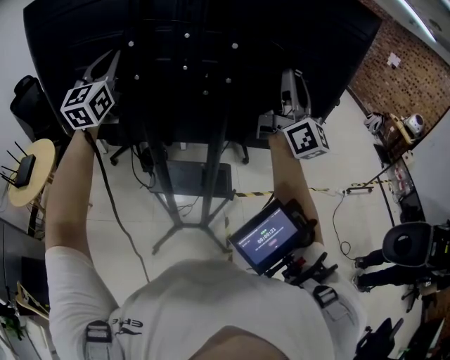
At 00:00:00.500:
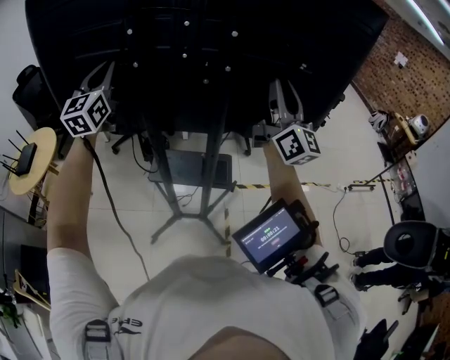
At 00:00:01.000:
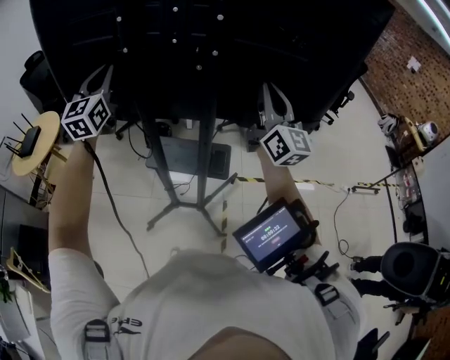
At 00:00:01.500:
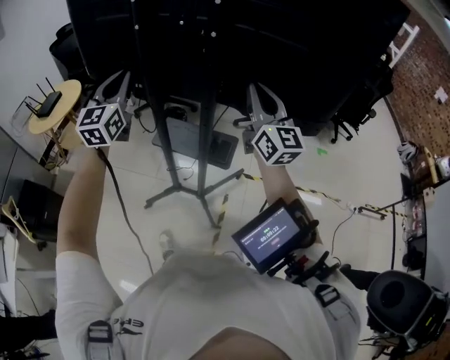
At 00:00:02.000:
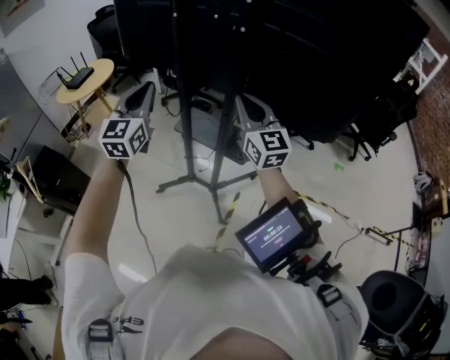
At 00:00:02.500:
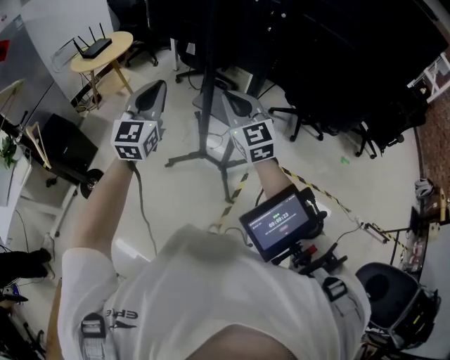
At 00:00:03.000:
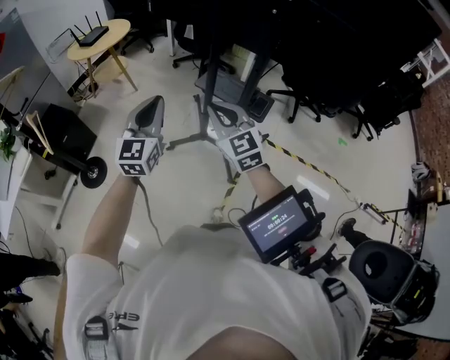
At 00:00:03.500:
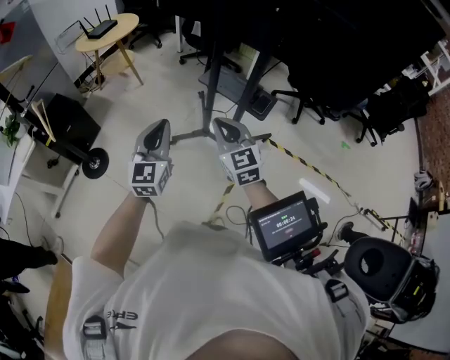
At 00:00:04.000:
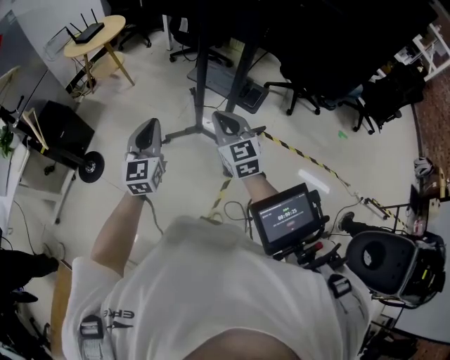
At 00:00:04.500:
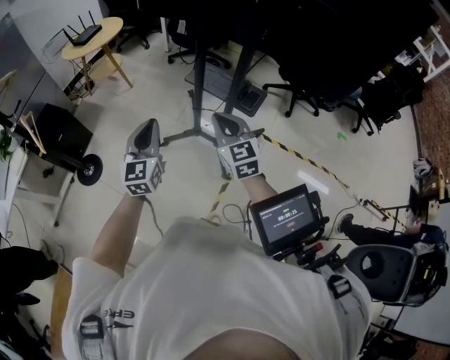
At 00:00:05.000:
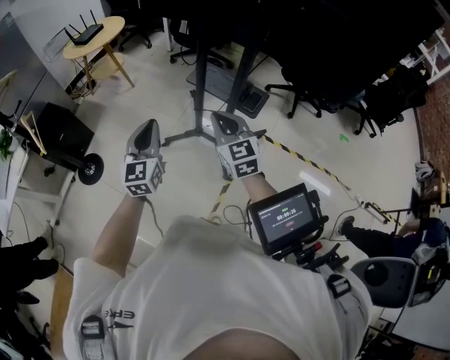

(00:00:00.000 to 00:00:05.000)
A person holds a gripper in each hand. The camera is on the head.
00:00:00.000 - 00:00:02.500: The left gripper ends up roughly 40 cm from where it was, and changes its angle by about 30 degrees; the right gripper moves some 35 cm, tips its fingers downward by some 50 degrees, and closes.
00:00:02.500 - 00:00:05.000: Both grippers travel together downward and backward, roughly 20 cm.

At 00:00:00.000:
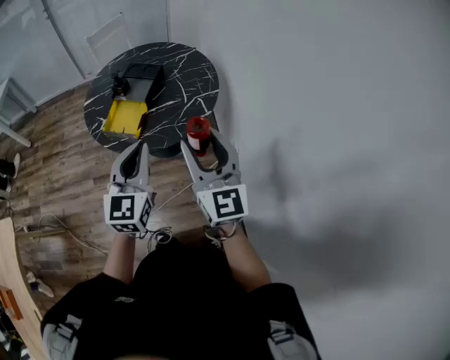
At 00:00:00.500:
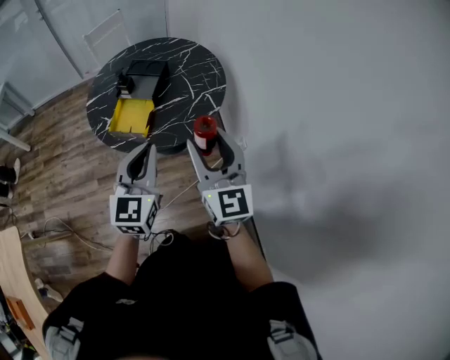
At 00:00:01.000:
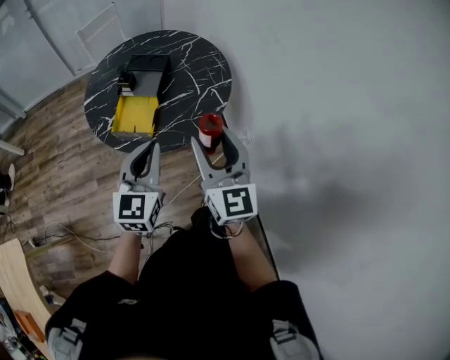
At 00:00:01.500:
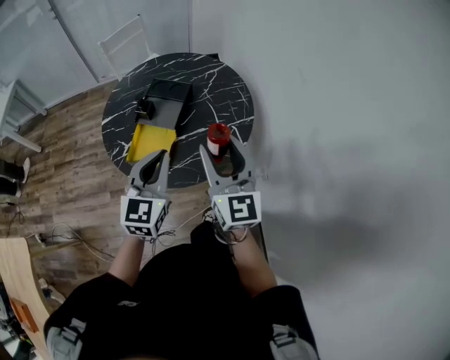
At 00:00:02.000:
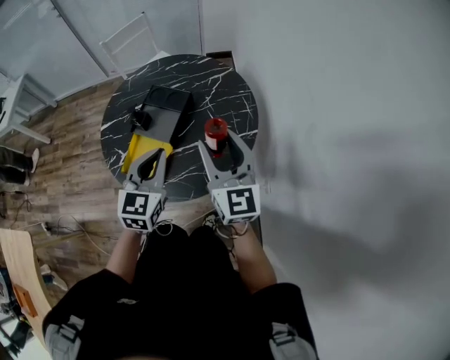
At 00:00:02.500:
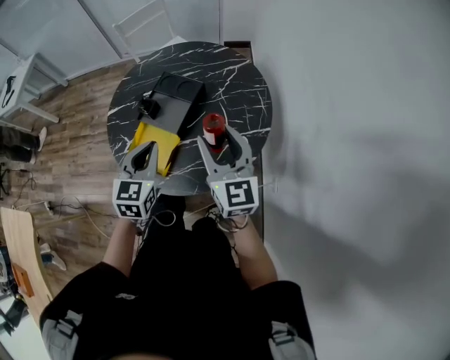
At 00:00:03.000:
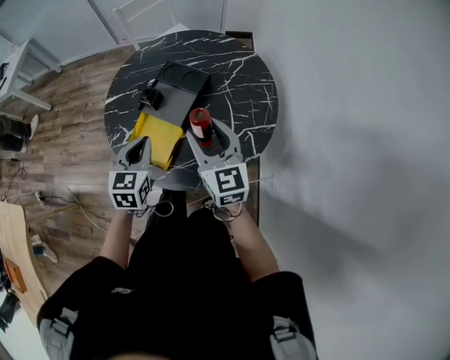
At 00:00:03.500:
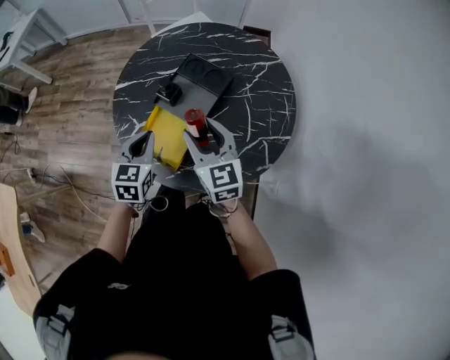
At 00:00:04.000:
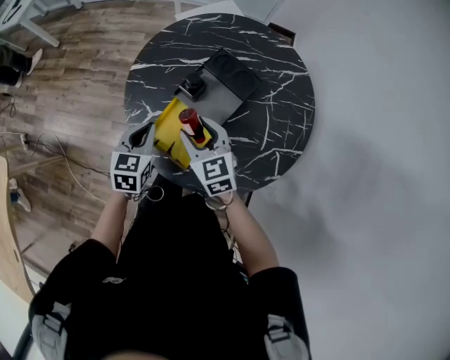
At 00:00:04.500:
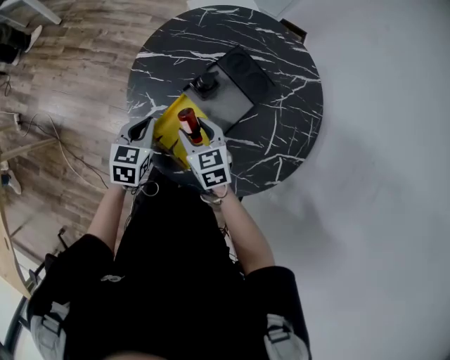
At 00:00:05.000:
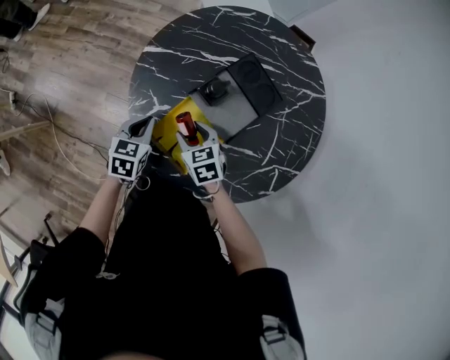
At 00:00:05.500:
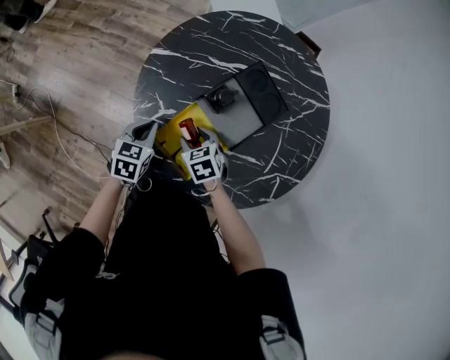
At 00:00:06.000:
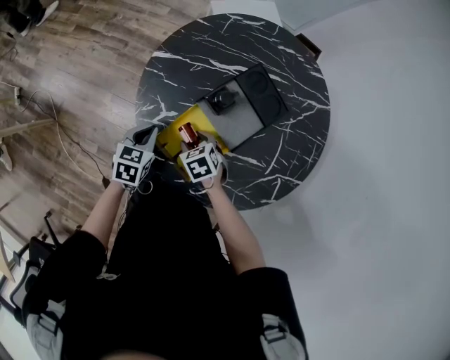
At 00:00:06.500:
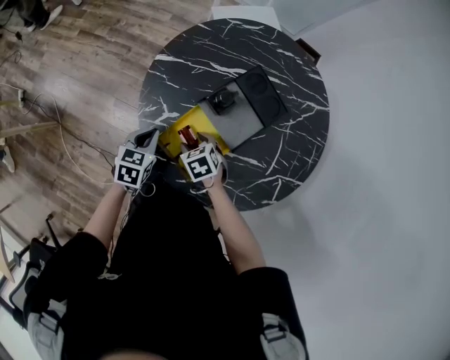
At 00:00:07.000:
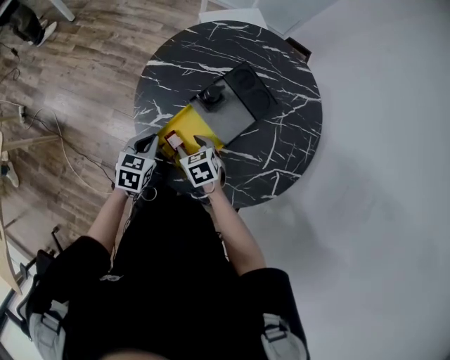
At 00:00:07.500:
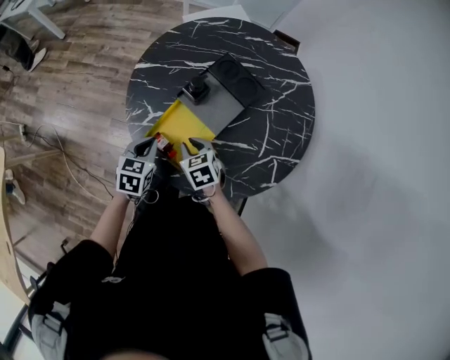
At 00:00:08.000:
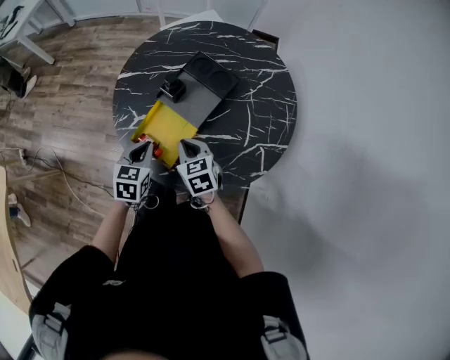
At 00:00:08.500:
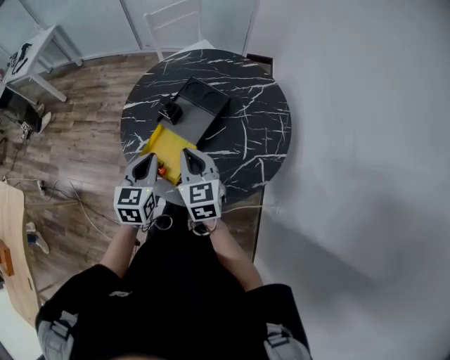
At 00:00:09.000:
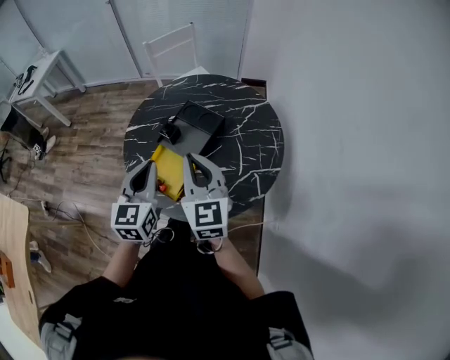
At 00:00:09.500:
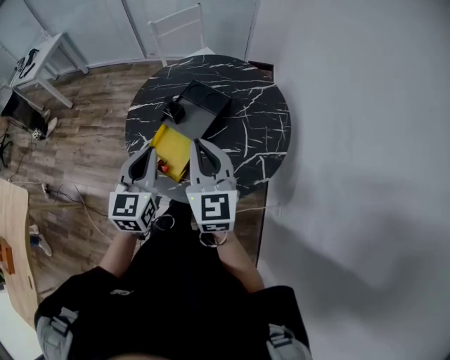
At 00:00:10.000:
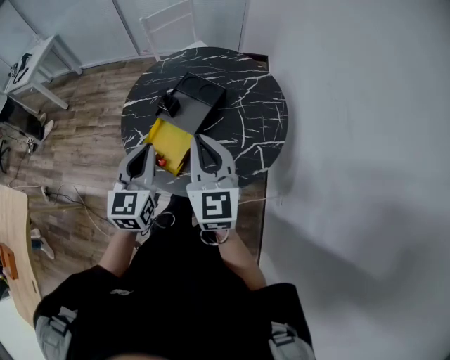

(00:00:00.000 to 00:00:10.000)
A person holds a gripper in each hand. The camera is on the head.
00:00:00.000 - 00:00:02.000: Both grippers move forward, about 30 cm.
00:00:02.000 - 00:00:04.000: Both grippers travel together to the left, downward and forward, approximately 35 cm. The right gripper points its fingers approximately 30 degrees further downward, while the left gripper turns by approximately 30 degrees.
00:00:04.000 - 00:00:06.000: The left gripper shifts approximately 10 cm downward and to the left. The right gripper travels downward by approximately 20 cm, and tilts its fingers about 40 degrees downward.
00:00:06.000 - 00:00:08.000: The left gripper moves backward, to the right and upward, approximately 15 cm, while the right gripper travels upward, to the right and backward by some 15 cm, rotates approximately 30 degrees, and closes its fingers.
00:00:08.000 - 00:00:10.000: The two grippers go approximately 25 cm upward. The left gripper swivels some 30 degrees; the right gripper points its fingers roughly 40 degrees further upward.

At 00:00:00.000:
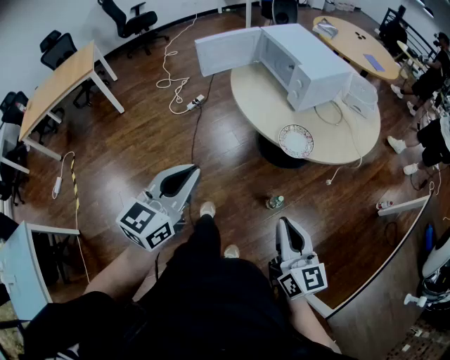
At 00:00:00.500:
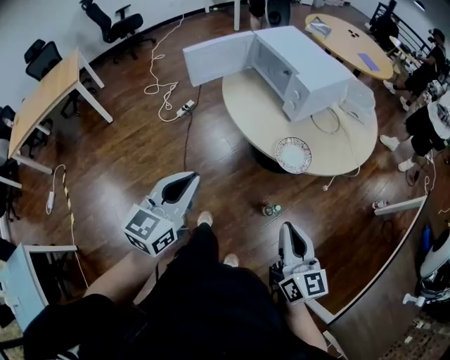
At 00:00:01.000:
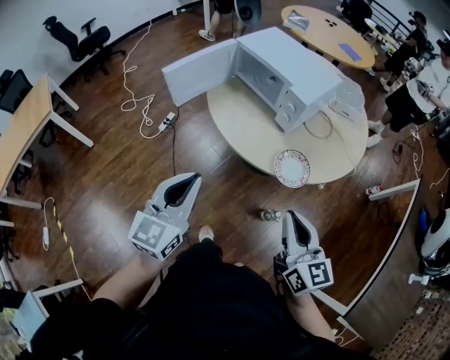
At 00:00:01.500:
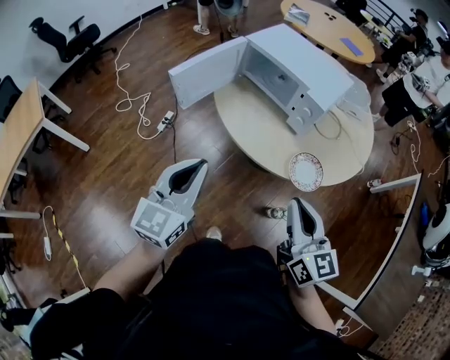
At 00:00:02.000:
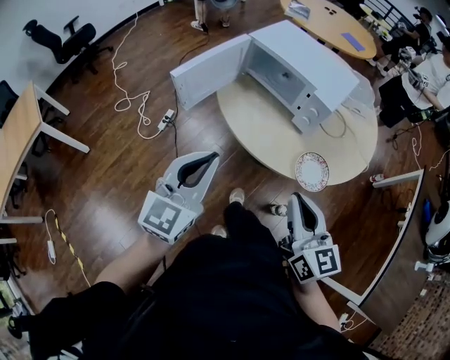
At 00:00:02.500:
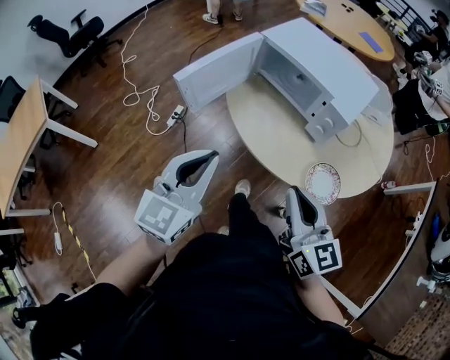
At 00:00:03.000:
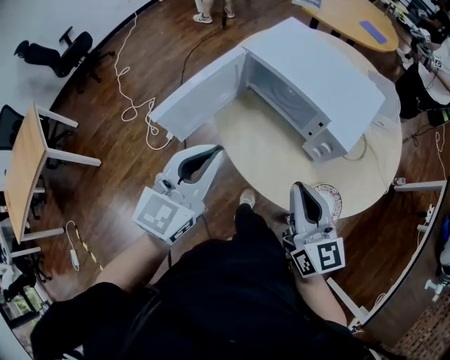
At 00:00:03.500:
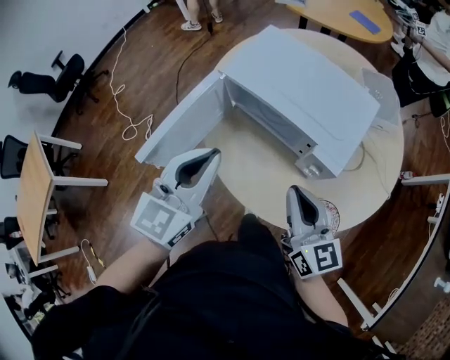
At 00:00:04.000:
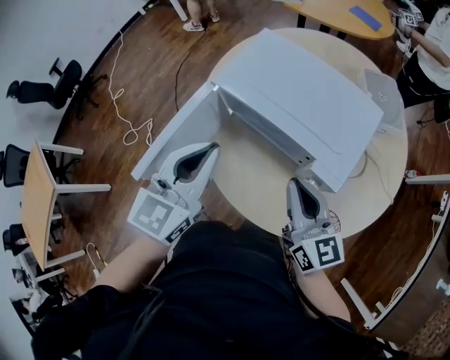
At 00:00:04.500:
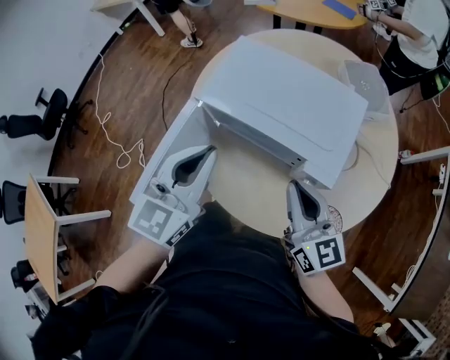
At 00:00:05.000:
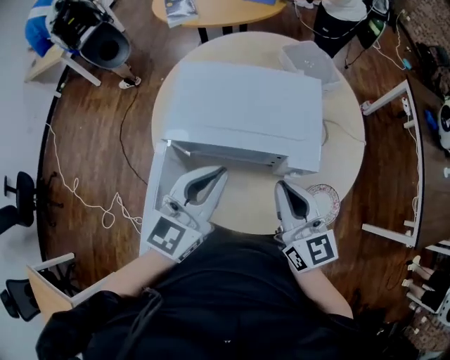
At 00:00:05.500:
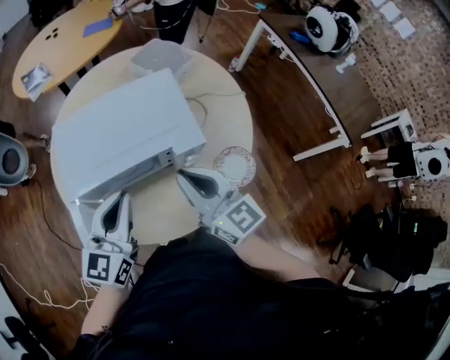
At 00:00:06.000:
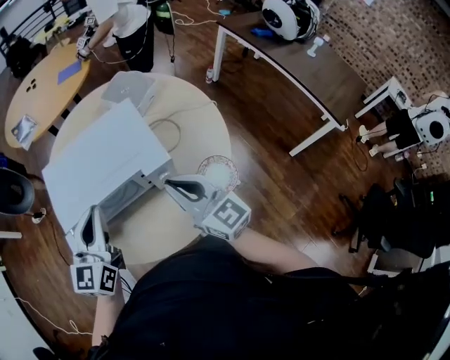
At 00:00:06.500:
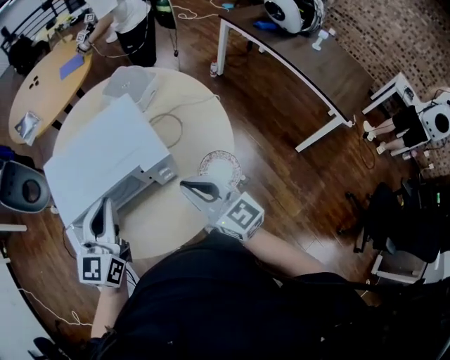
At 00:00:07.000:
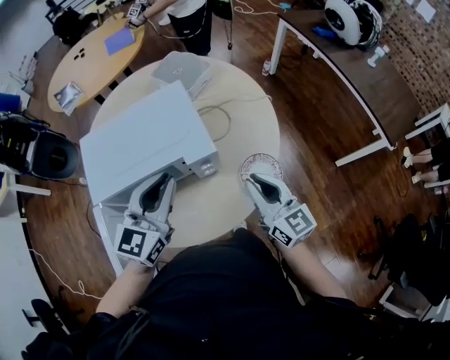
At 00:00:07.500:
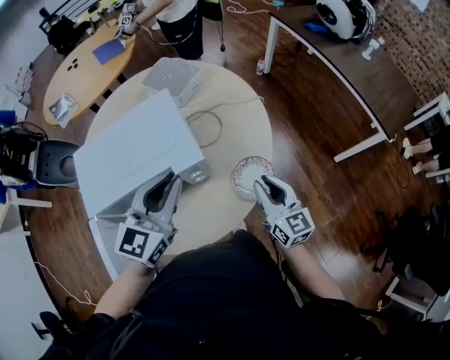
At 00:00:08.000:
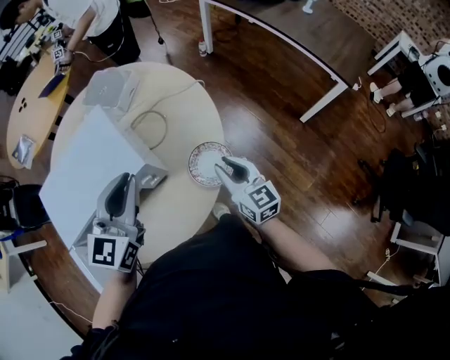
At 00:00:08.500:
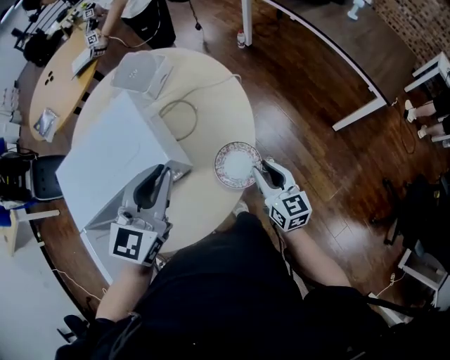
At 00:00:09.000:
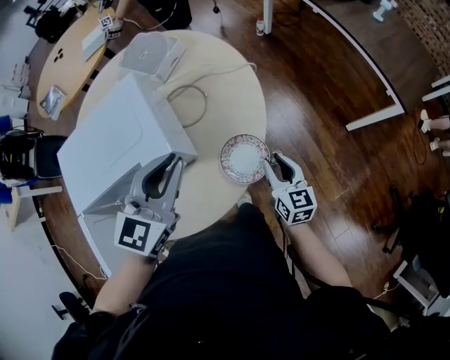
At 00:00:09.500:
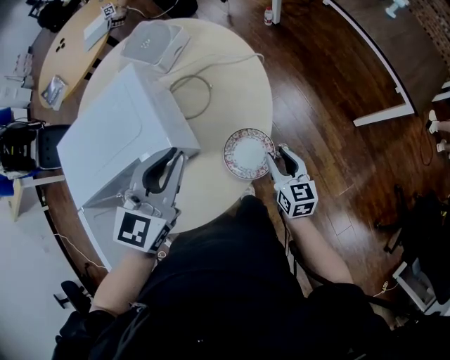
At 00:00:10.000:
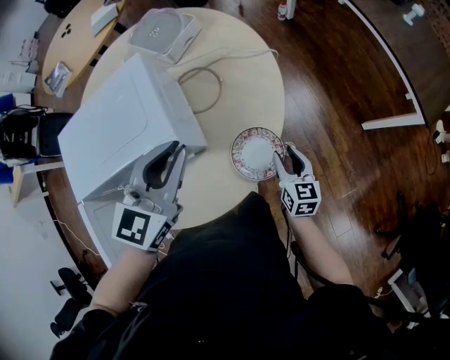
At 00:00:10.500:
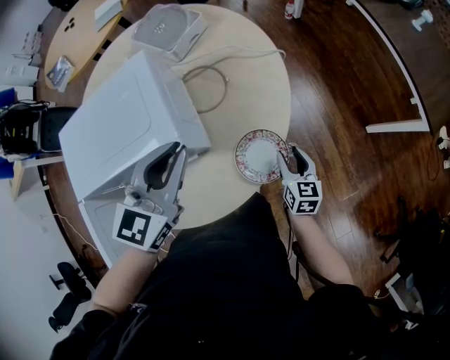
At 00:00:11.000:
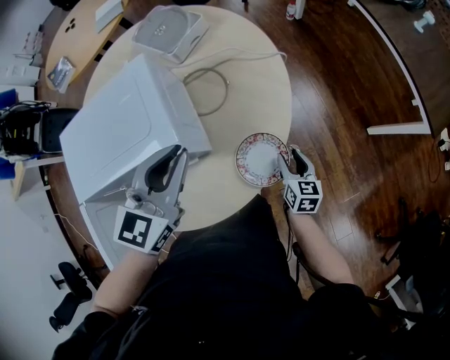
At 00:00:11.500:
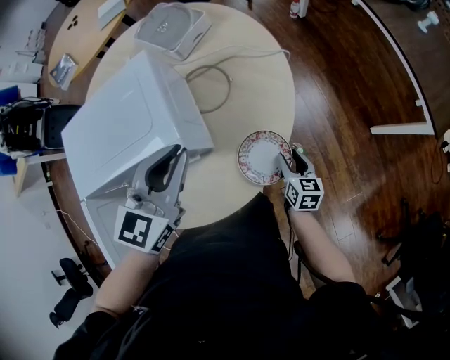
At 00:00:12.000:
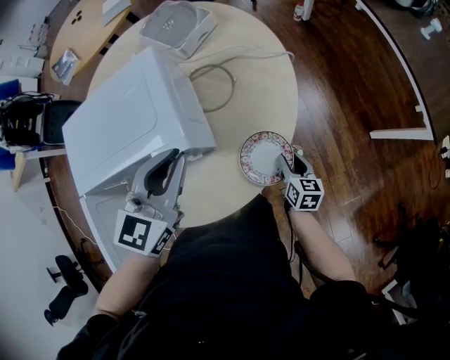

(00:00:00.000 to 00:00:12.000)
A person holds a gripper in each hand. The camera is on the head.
00:00:00.000 - 00:00:02.000: Both grippers travel together forward and to the left, some 30 cm. The left gripper changes its angle by approximately 20 degrees.
00:00:02.000 - 00:00:04.000: The grippers both shift forward by some 30 cm.
00:00:04.000 - 00:00:06.000: The left gripper ends up about 10 cm from where it was, and turns by roughly 40 degrees. Meanwhile the right gripper ends up approximately 5 cm from where it was, and changes its angle by approximately 40 degrees.
00:00:06.000 - 00:00:08.000: The right gripper is displaced to the right and downward by about 25 cm, rotates approximately 30 degrees, and opens up. The left gripper goes about 20 cm to the right, and changes its angle by some 20 degrees.
00:00:08.000 - 00:00:10.000: The right gripper heads downward, covering about 15 cm. The left gripper ends up some 5 cm from where it was.
00:00:10.000 - 00:00:12.000: The right gripper moves downward, some 5 cm.
